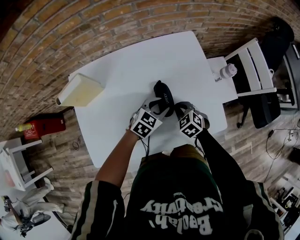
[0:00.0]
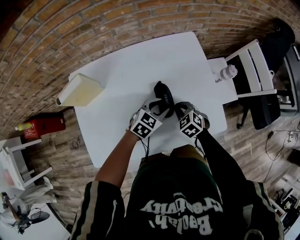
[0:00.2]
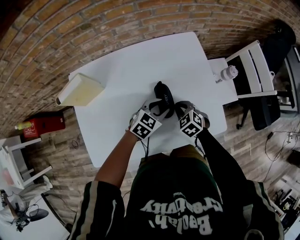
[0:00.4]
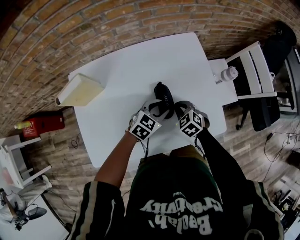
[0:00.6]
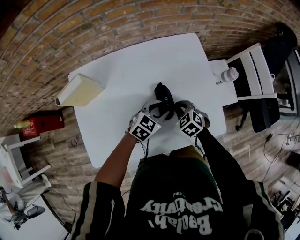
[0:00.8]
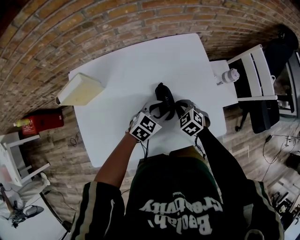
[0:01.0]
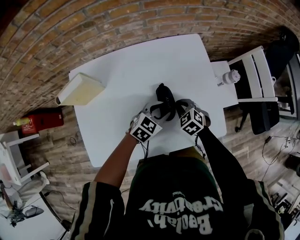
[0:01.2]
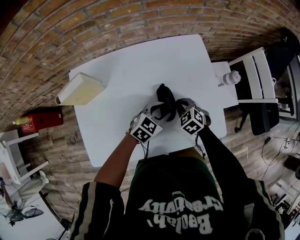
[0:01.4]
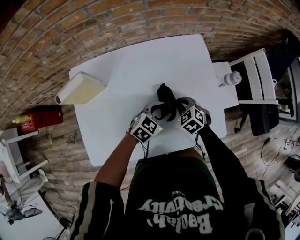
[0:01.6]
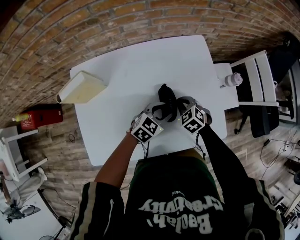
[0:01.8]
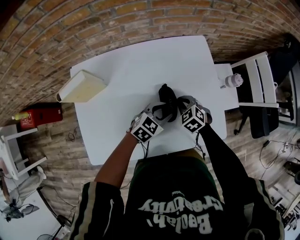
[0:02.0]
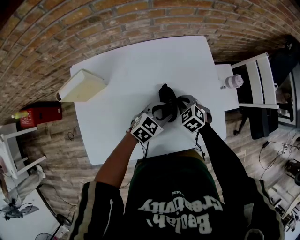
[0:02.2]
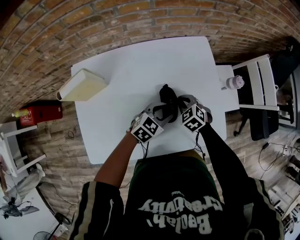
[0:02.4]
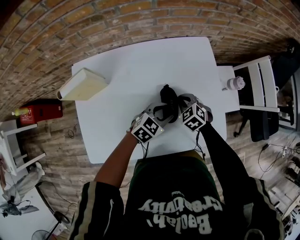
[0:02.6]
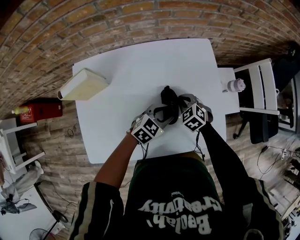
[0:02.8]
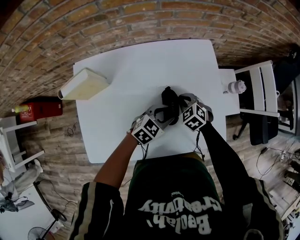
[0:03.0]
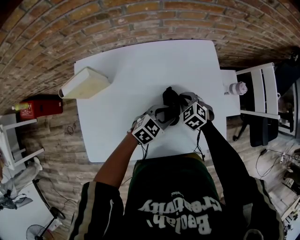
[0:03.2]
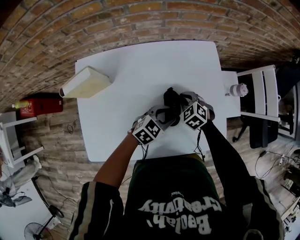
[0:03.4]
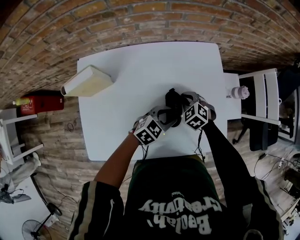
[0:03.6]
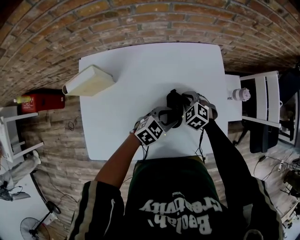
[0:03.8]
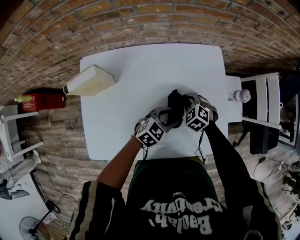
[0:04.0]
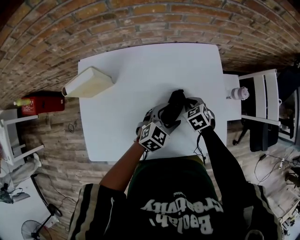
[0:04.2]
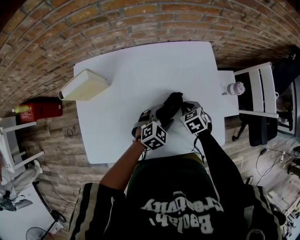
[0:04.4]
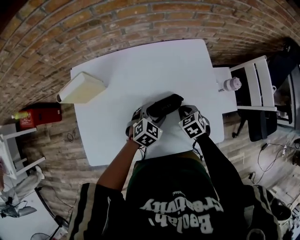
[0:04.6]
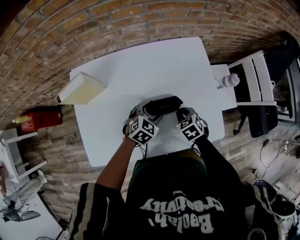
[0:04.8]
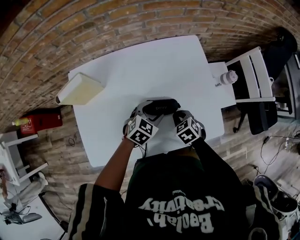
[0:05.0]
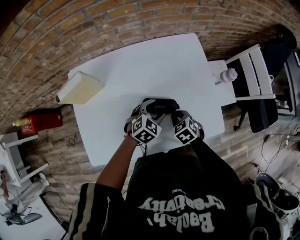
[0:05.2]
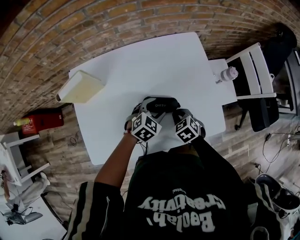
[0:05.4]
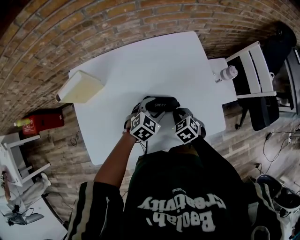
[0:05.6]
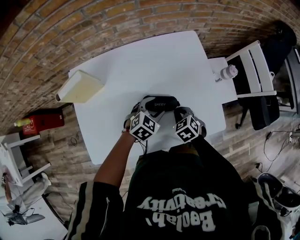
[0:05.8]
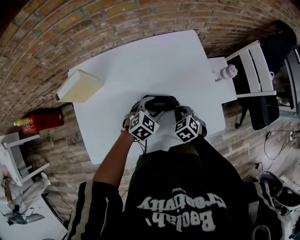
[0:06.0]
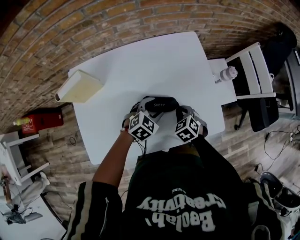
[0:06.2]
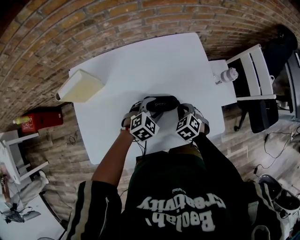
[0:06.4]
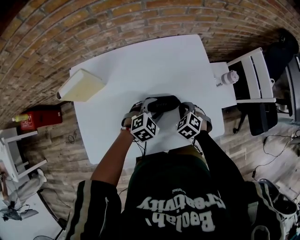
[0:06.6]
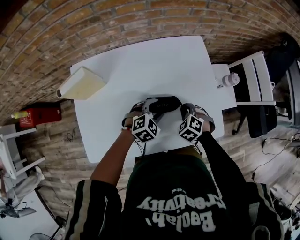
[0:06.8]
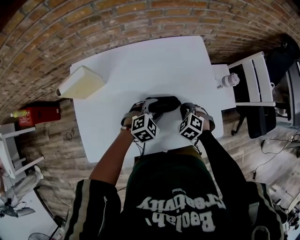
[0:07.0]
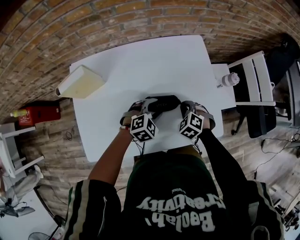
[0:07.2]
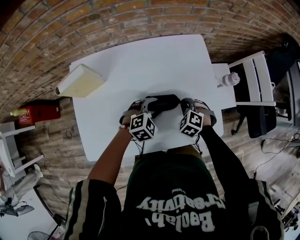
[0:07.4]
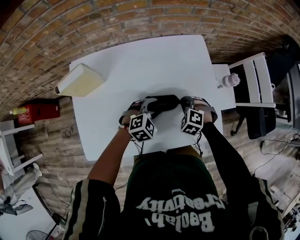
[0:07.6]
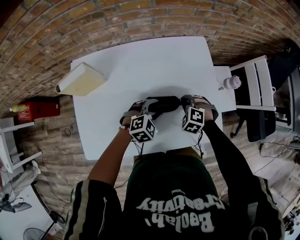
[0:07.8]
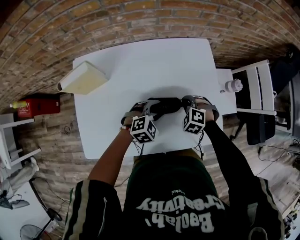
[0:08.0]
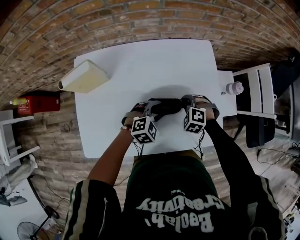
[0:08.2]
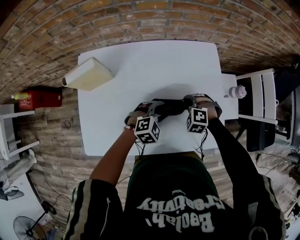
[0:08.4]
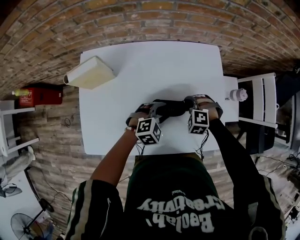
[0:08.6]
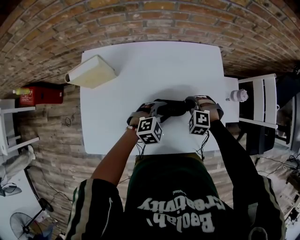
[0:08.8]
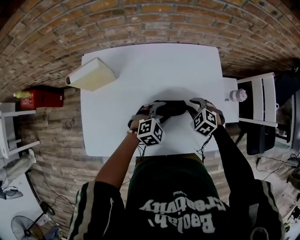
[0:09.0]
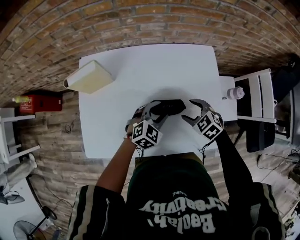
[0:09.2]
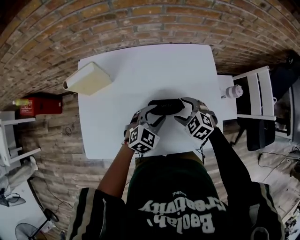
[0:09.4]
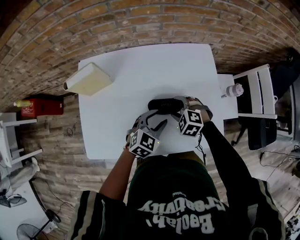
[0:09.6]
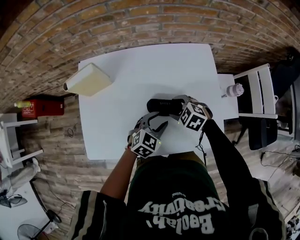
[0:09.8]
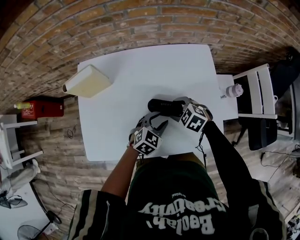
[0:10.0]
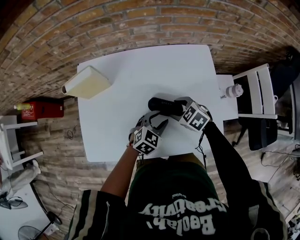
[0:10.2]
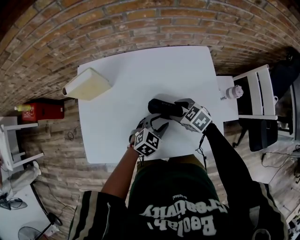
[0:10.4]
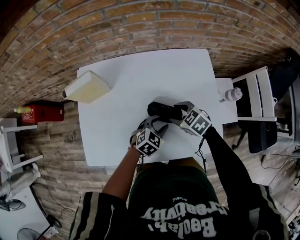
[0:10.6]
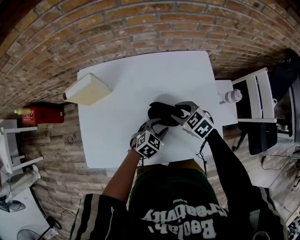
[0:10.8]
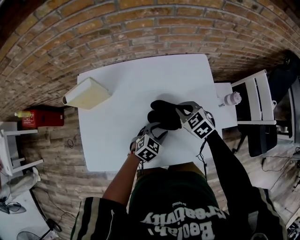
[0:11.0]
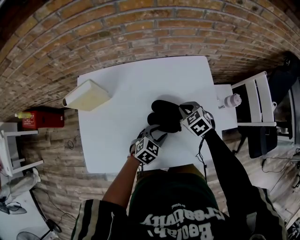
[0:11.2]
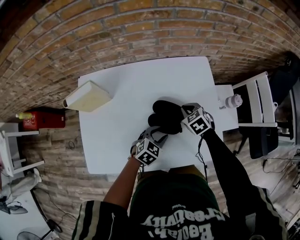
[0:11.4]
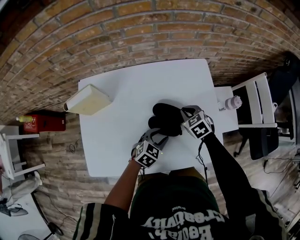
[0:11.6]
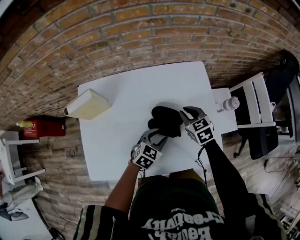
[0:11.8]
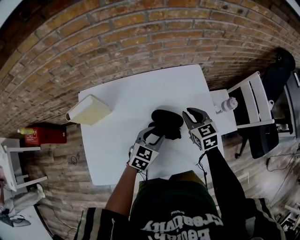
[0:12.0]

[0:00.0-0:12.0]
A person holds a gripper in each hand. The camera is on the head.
0:00.0 to 0:01.6: The grippers move only a little.
0:01.6 to 0:03.0: The grippers stay close to where they were, moving slightly.
0:03.0 to 0:04.4: The right gripper changes its angle by approximately 20 degrees. The left gripper opens its fingers.
0:04.4 to 0:06.0: The right gripper moves backward, some 10 cm.
0:06.0 to 0:07.6: The right gripper travels forward by approximately 5 cm, and swivels approximately 40 degrees.
0:09.0 to 0:10.4: The right gripper moves to the left, about 5 cm, swivels about 30 degrees, and opens its fingers.
0:10.4 to 0:12.0: The right gripper goes some 15 cm upward, forward and to the right, changes its angle by about 40 degrees, and closes its fingers; the left gripper ends up some 5 cm from where it was.

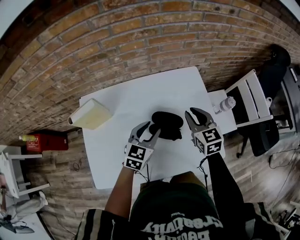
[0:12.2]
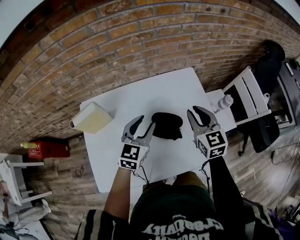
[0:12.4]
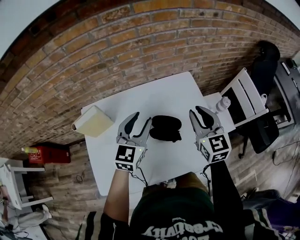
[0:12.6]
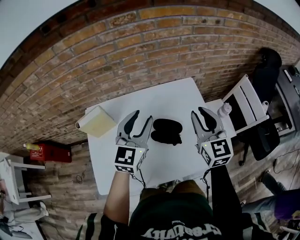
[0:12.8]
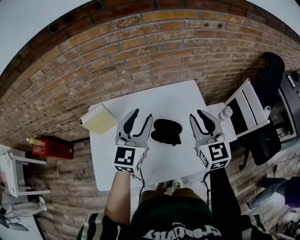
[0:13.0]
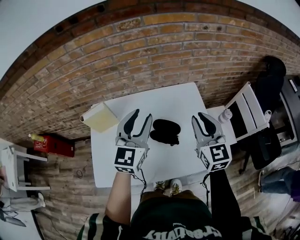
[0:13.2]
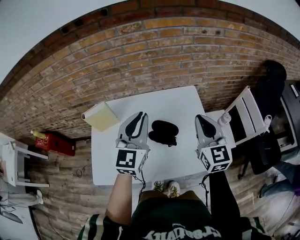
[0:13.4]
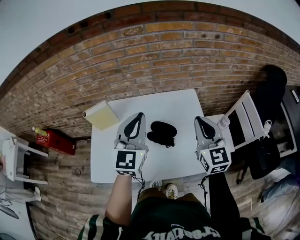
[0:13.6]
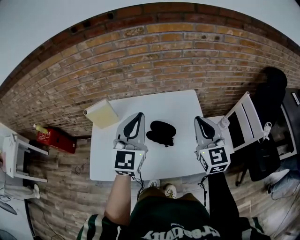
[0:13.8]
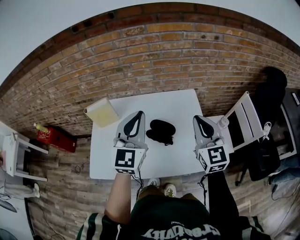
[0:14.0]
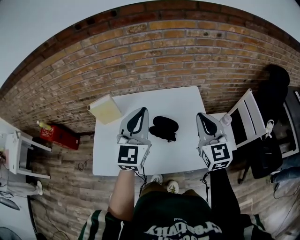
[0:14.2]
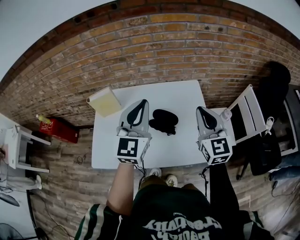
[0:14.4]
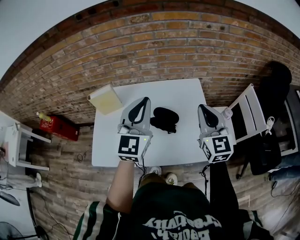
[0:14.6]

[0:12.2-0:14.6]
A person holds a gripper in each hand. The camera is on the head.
0:12.2 to 0:13.4: The left gripper moves upward, roughly 25 cm, changes its angle by some 30 degrees, and closes. The right gripper shifts roughly 20 cm upward and backward, and rotates approximately 20 degrees.
0:13.4 to 0:14.6: The left gripper shifts by some 5 cm.

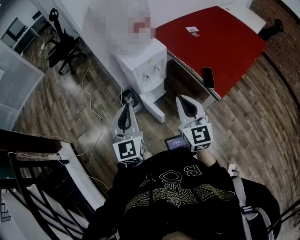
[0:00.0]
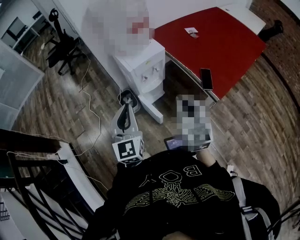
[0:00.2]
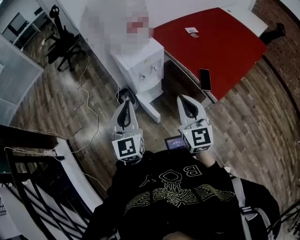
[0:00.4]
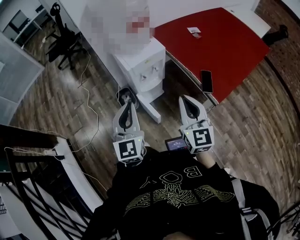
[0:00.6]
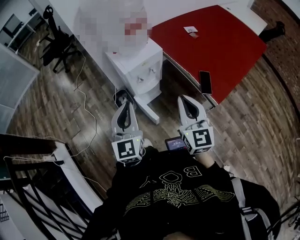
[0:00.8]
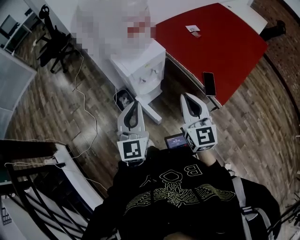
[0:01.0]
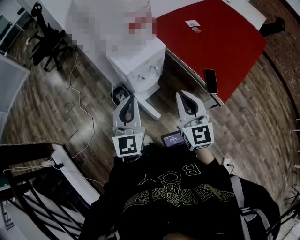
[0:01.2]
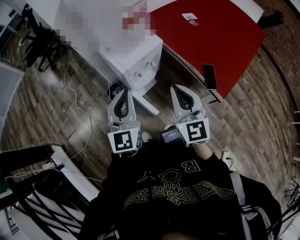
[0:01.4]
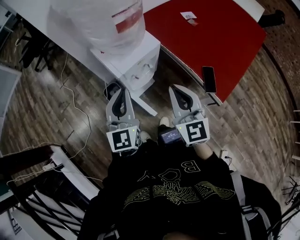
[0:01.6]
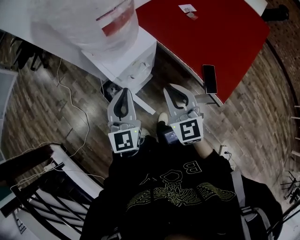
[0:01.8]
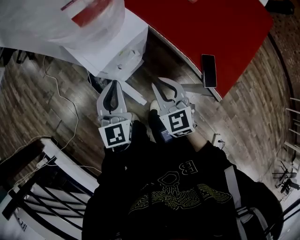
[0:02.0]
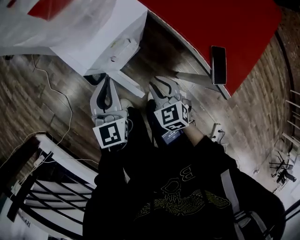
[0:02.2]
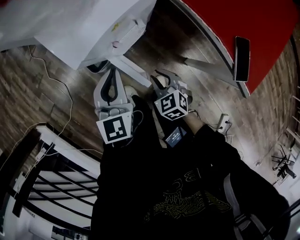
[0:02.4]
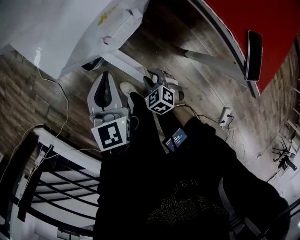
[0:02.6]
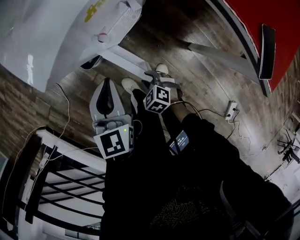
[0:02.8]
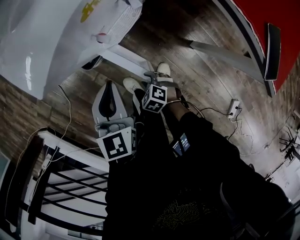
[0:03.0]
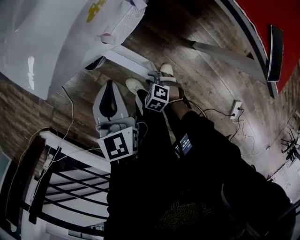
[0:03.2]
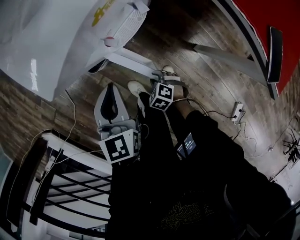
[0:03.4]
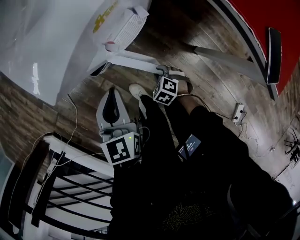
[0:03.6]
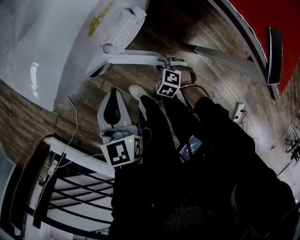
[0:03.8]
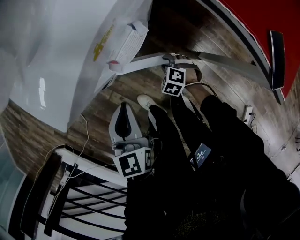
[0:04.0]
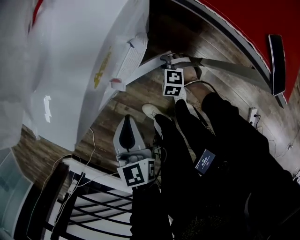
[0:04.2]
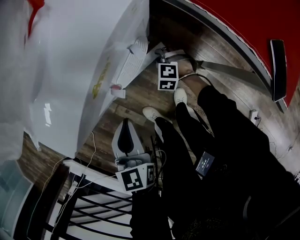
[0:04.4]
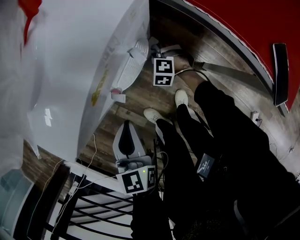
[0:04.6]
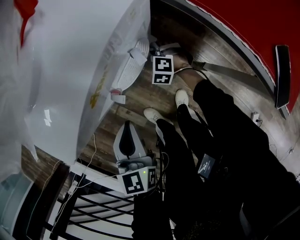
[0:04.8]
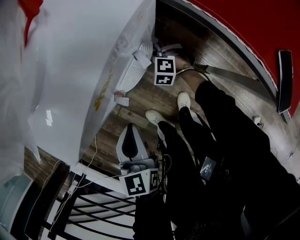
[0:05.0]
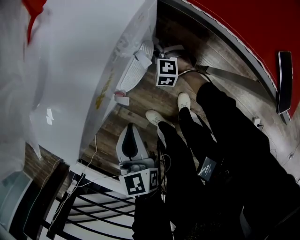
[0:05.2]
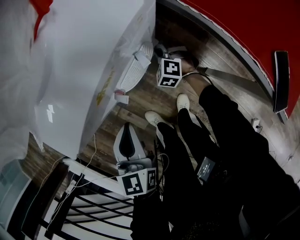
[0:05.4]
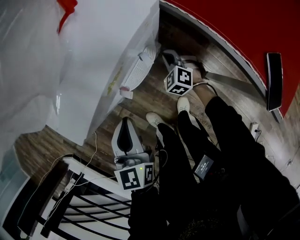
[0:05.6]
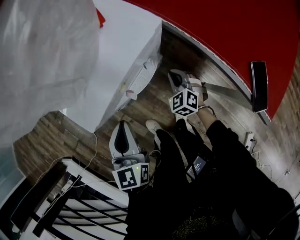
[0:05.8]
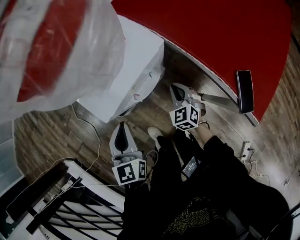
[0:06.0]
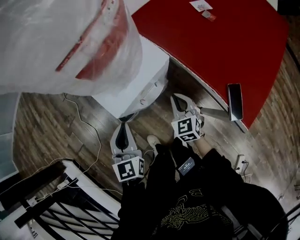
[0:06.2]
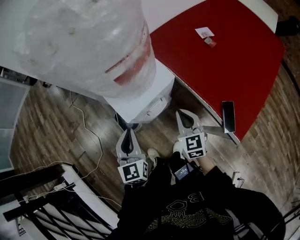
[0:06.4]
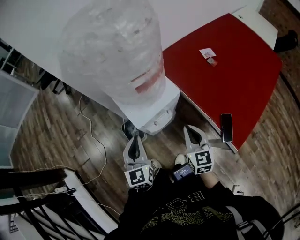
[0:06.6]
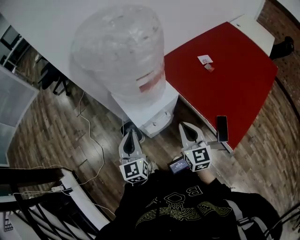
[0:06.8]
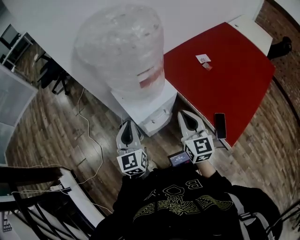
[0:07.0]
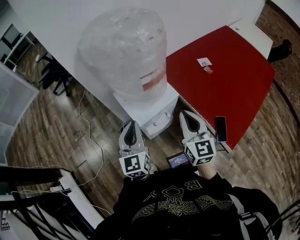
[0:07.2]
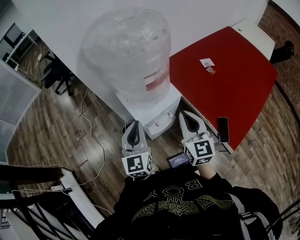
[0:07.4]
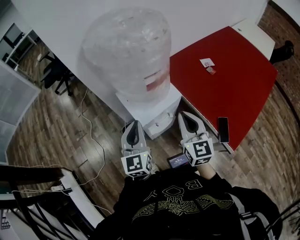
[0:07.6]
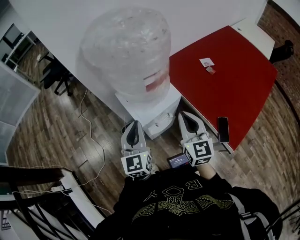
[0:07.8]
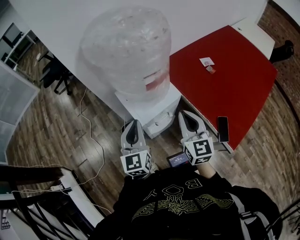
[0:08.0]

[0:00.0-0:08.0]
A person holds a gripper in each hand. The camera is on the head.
0:00.0 to 0:01.6: The grippers both shift forward by some 20 cm.
0:01.6 to 0:03.2: The right gripper moves downward, roughly 60 cm, angles its fingers downward, by roughly 70 degrees, and opens. Meanwhile the left gripper heads downward, covering roughly 35 cm, and rotates roughly 30 degrees.
0:03.2 to 0:04.8: The right gripper is displaced forward by approximately 30 cm, and turns by approximately 30 degrees.
0:04.8 to 0:06.4: The right gripper shifts some 40 cm upward, and tilts its fingers roughly 40 degrees upward. Meanwhile the left gripper travels upward by roughly 25 cm, and changes its angle by about 20 degrees.
0:06.4 to 0:08.0: The right gripper shifts some 20 cm upward. Meanwhile the left gripper shifts some 15 cm upward.

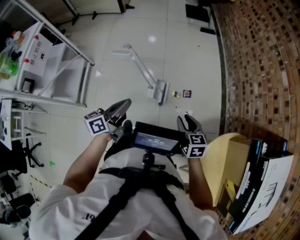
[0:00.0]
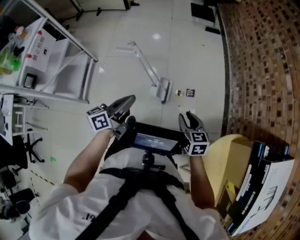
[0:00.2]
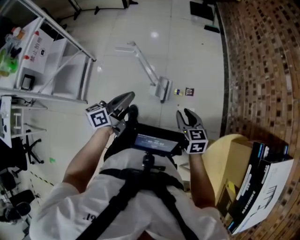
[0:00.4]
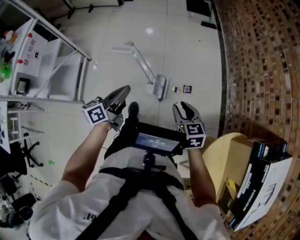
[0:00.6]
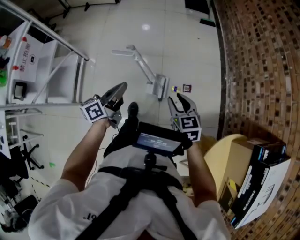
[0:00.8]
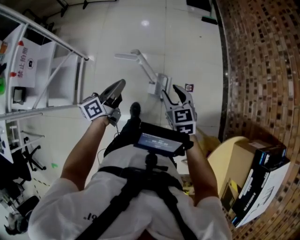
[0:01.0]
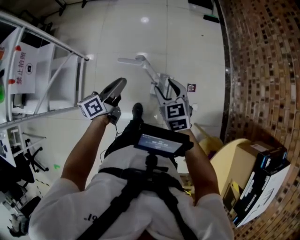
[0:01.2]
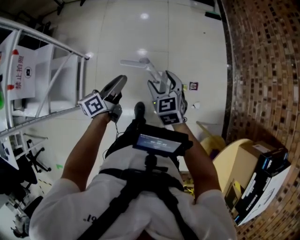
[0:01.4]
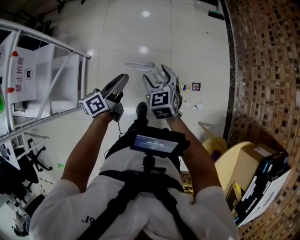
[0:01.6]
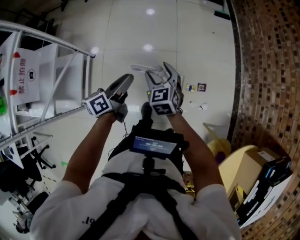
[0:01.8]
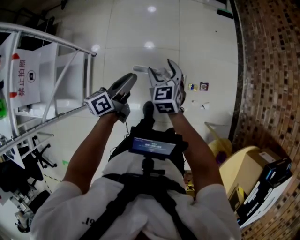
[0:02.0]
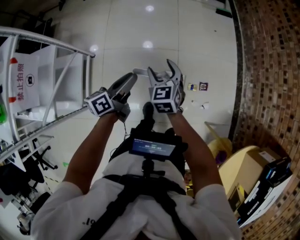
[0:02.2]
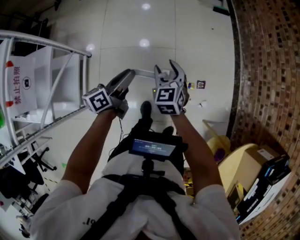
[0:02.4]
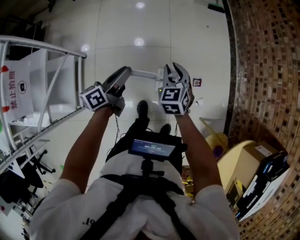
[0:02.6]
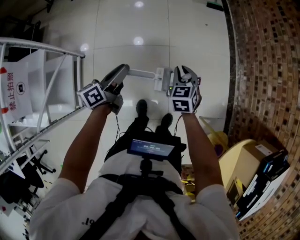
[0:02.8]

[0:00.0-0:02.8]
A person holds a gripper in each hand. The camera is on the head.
0:00.0 to 0:01.4: The right gripper changes place by roughly 35 cm, turns by about 20 degrees, and opens its fingers.
0:01.4 to 0:02.8: The right gripper moves some 15 cm, and closes up.
